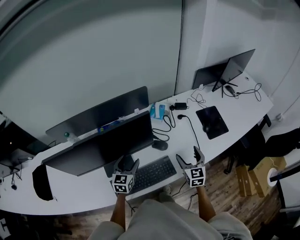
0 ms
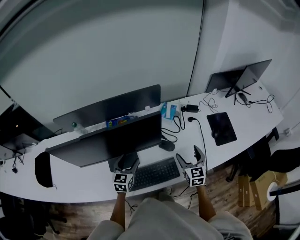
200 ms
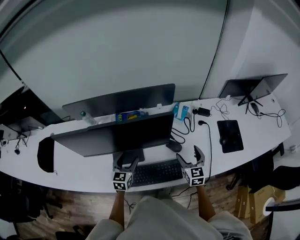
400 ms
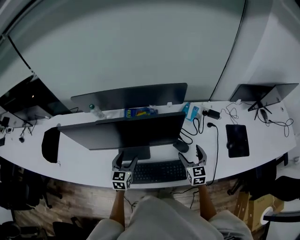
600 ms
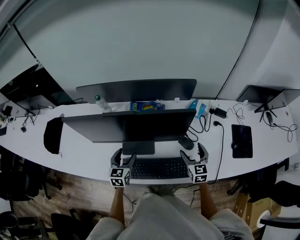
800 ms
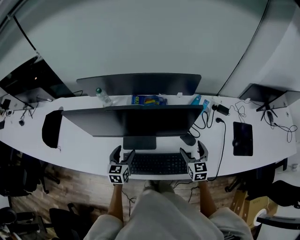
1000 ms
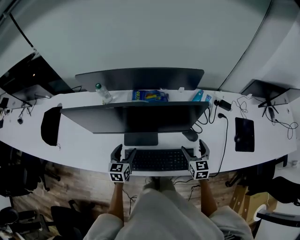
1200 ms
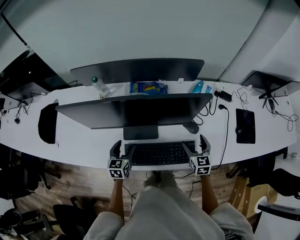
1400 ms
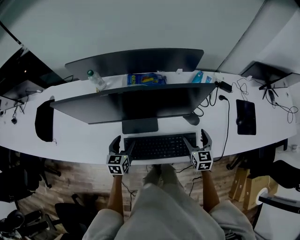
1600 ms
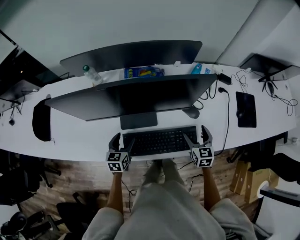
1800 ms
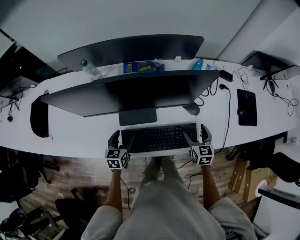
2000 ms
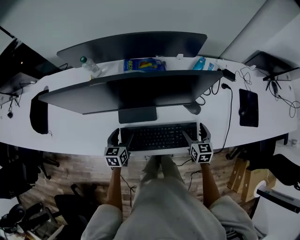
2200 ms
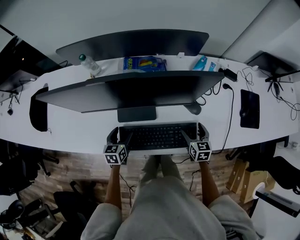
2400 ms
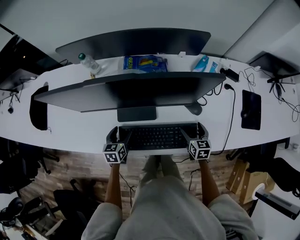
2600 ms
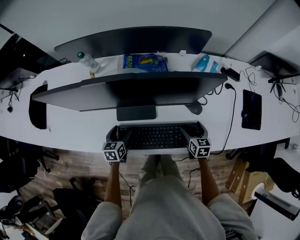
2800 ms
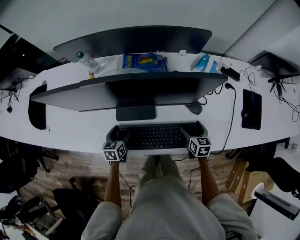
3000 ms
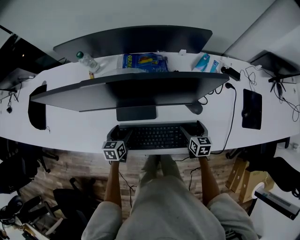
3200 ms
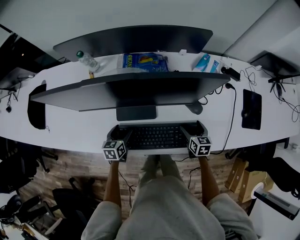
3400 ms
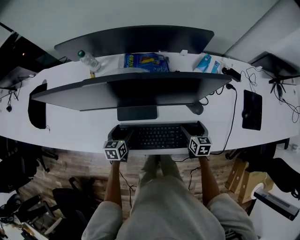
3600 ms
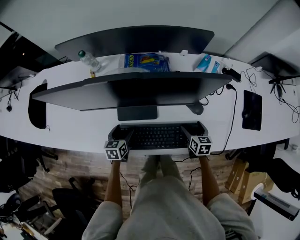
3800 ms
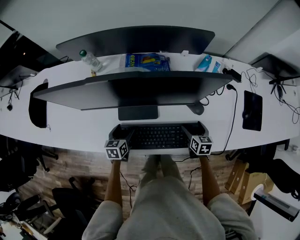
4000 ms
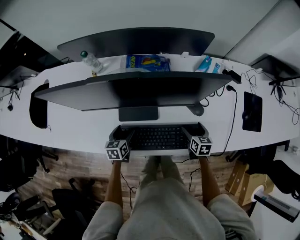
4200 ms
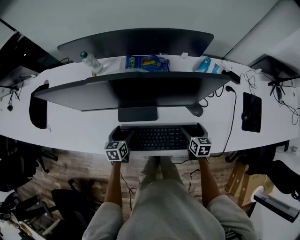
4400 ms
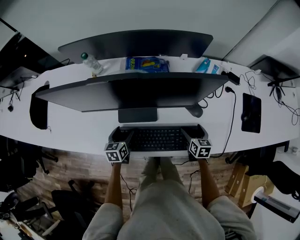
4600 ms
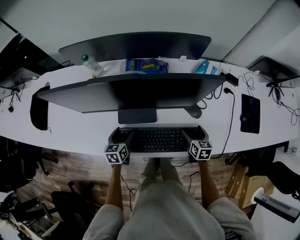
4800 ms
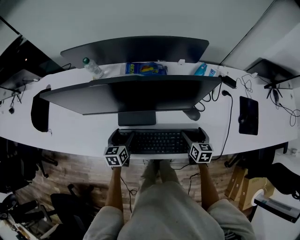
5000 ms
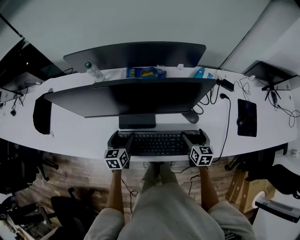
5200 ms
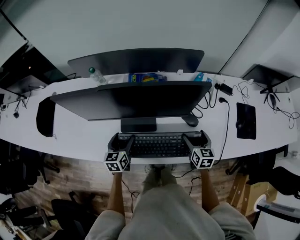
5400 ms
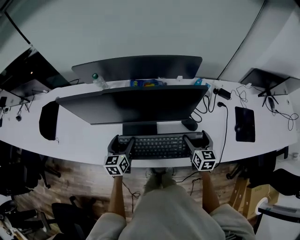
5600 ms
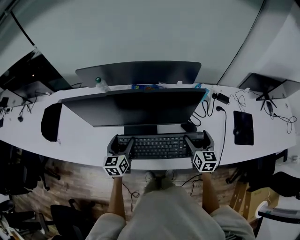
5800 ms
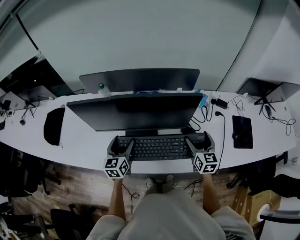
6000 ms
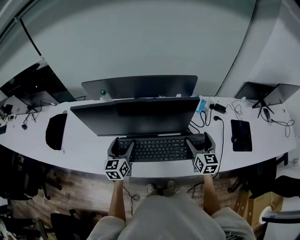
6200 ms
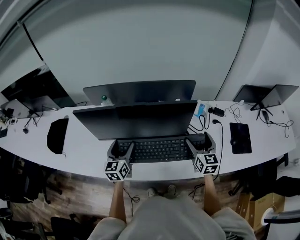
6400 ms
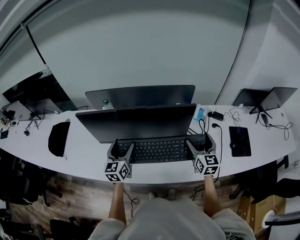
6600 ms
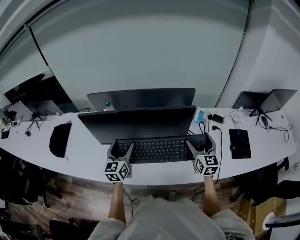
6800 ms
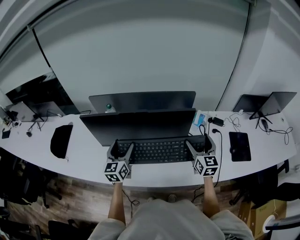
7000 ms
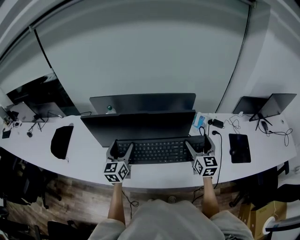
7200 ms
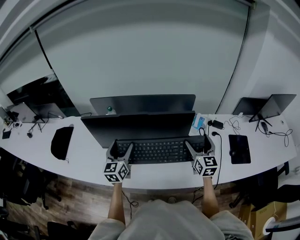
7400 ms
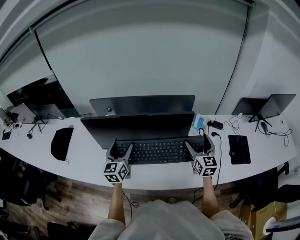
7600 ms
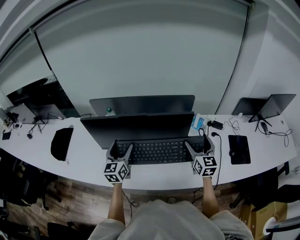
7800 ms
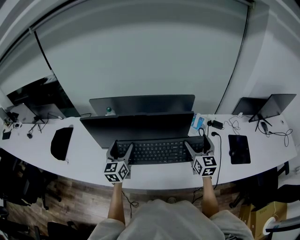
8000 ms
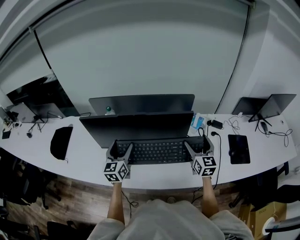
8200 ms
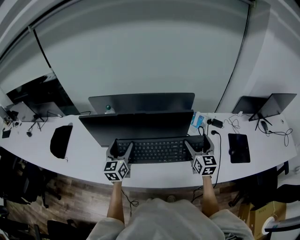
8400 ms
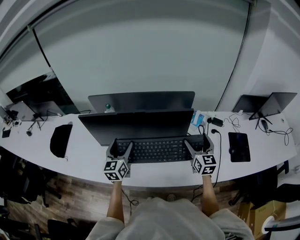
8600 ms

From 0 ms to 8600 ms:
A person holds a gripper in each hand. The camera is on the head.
From 0 ms to 1400 ms: The left gripper heads to the left and downward, covering roughly 20 cm, and changes its angle by about 30 degrees. Meanwhile the right gripper heads to the left, downward and forward, covering some 15 cm, and changes its angle by approximately 20 degrees.
From 1400 ms to 2800 ms: Both grippers travel together downward, some 10 cm.
From 2800 ms to 4400 ms: The grippers make only small movements.
From 4400 ms to 5800 ms: The grippers both shift upward by some 20 cm. The right gripper swivels approximately 20 degrees; the left gripper swivels about 20 degrees.
From 5800 ms to 7200 ms: Both grippers move upward, some 15 cm.
From 7200 ms to 8600 ms: The grippers stay close to where they were, moving slightly.

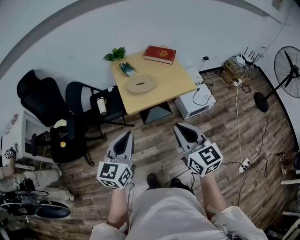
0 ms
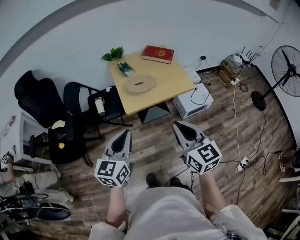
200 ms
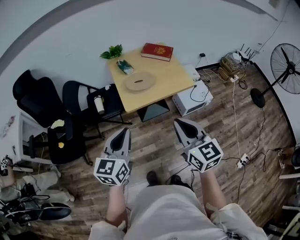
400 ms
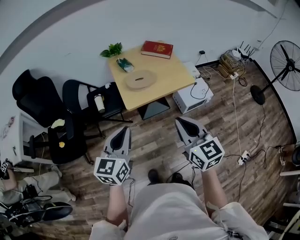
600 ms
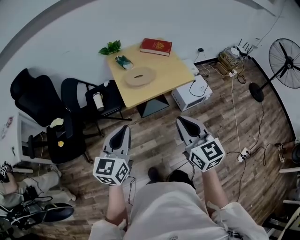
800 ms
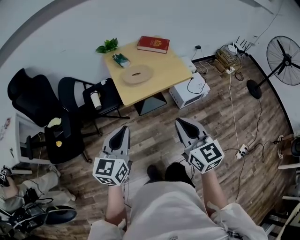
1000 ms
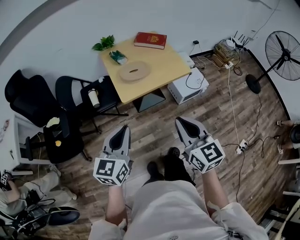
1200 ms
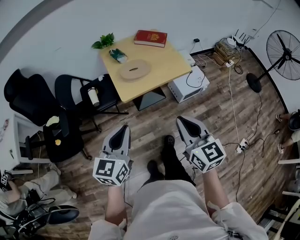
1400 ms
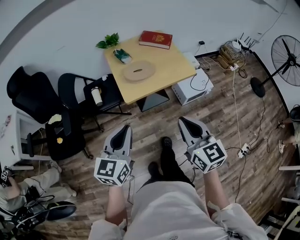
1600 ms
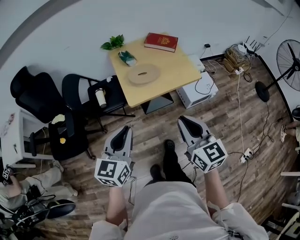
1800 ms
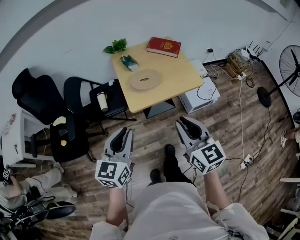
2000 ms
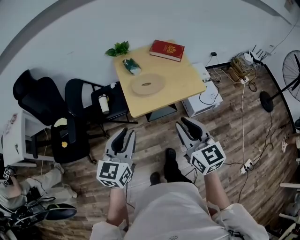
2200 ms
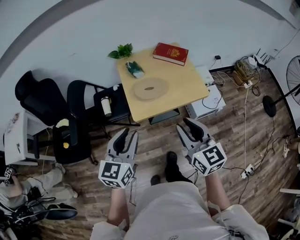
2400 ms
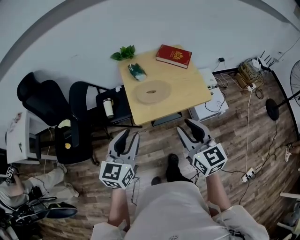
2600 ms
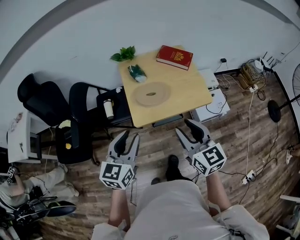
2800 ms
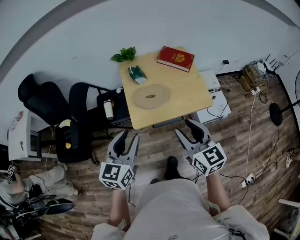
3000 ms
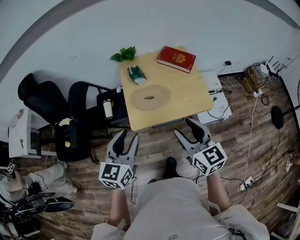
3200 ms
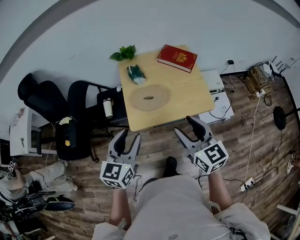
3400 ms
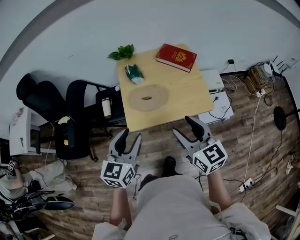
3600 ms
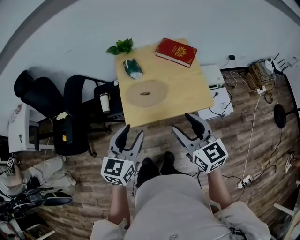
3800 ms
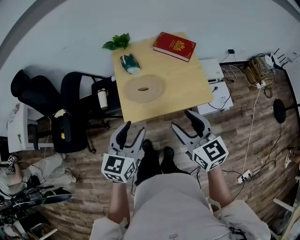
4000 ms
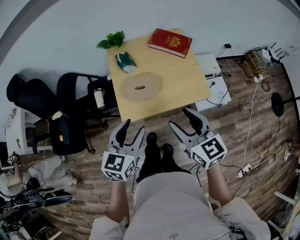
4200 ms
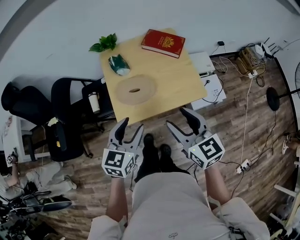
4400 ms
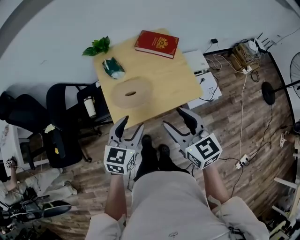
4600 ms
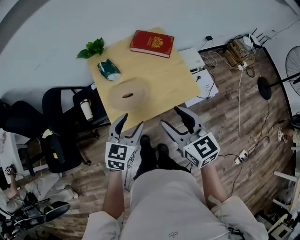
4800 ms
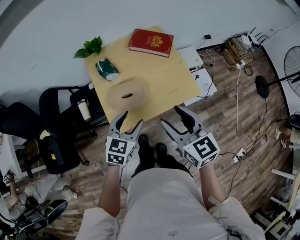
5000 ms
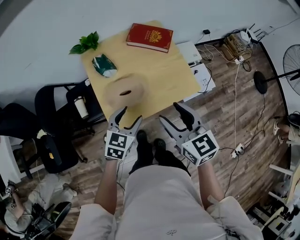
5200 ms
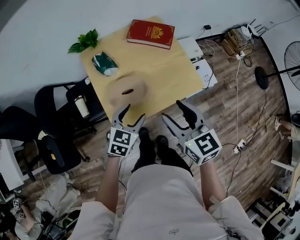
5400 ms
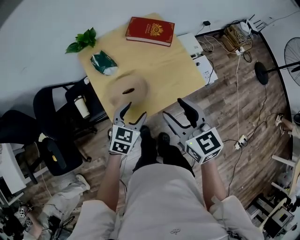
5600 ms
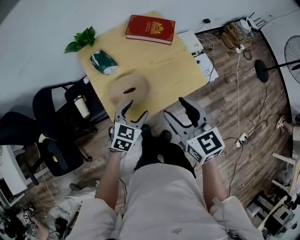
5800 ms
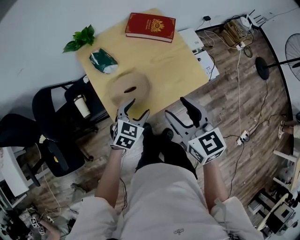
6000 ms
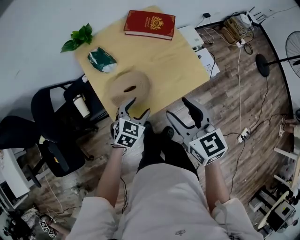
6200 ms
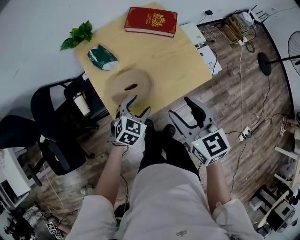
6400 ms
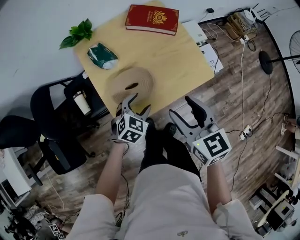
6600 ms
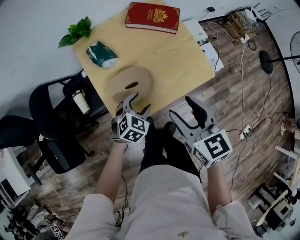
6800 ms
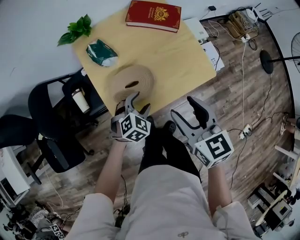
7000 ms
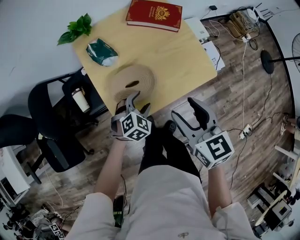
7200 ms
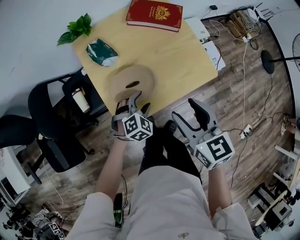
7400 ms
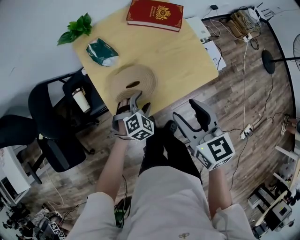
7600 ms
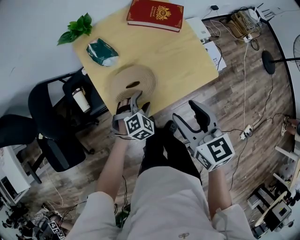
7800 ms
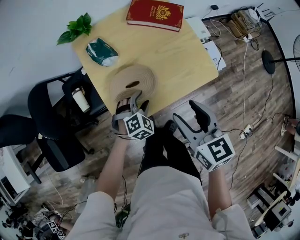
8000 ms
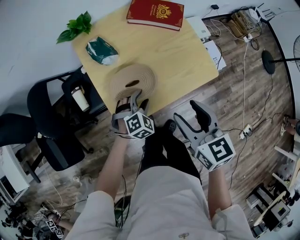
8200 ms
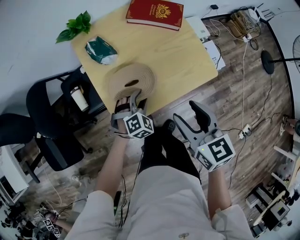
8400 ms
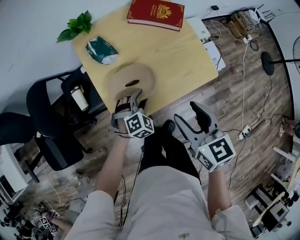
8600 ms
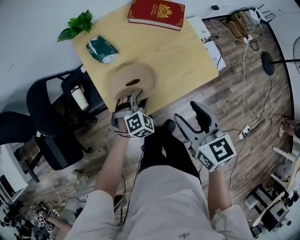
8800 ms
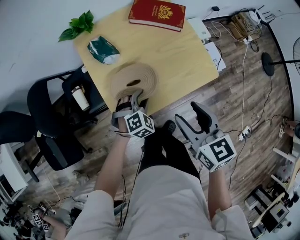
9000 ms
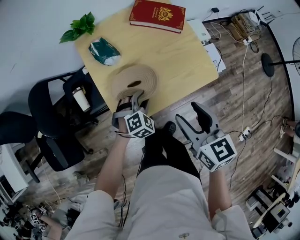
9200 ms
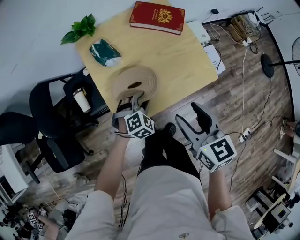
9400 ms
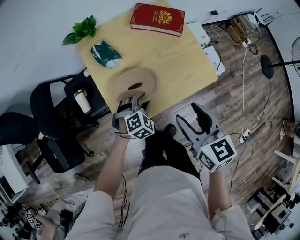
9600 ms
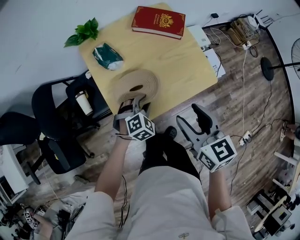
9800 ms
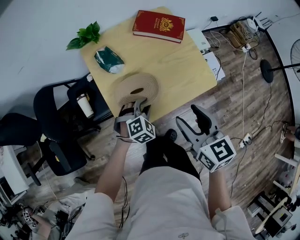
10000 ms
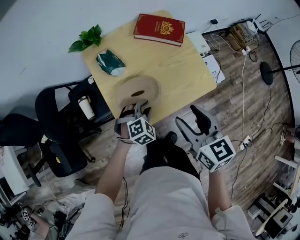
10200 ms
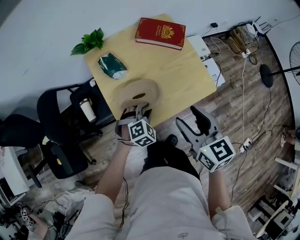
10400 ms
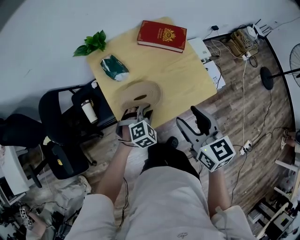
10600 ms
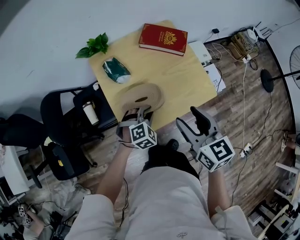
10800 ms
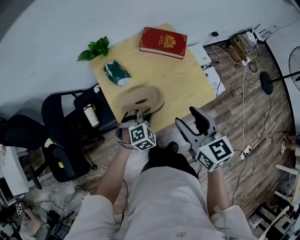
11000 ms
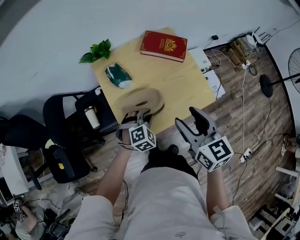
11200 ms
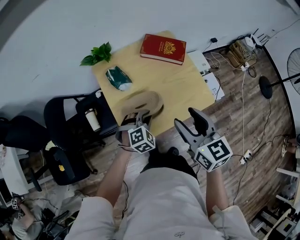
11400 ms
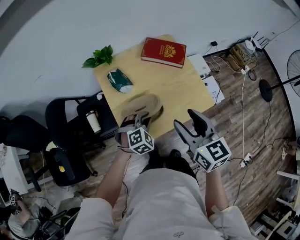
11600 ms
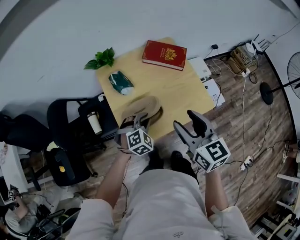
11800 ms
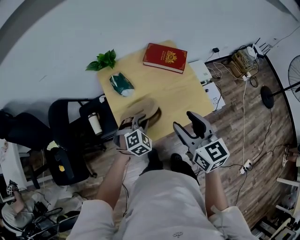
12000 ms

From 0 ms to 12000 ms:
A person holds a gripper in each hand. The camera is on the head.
From 0 ms to 1600 ms: There are only small adjustments of the grippers.
From 1600 ms to 3000 ms: The two grippers go some 20 cm forward. The left gripper opens its fingers, while the right gripper opens its fingers.
From 3000 ms to 4400 ms: The left gripper goes about 15 cm to the right, forward and downward; the right gripper moves forward and to the right, roughly 10 cm.
From 4400 ms to 6000 ms: The right gripper travels forward and downward by approximately 10 cm. The left gripper heads downward and forward, covering about 20 cm, and swivels some 30 degrees.
From 6000 ms to 7600 ms: The left gripper travels downward by about 10 cm, and turns by some 30 degrees.
From 7600 ms to 9000 ms: The left gripper closes up.
From 9000 ms to 10400 ms: The grippers move only a little.
From 10400 ms to 12000 ms: The two grippers go roughly 5 cm upward.

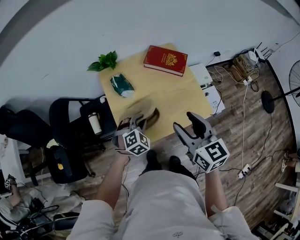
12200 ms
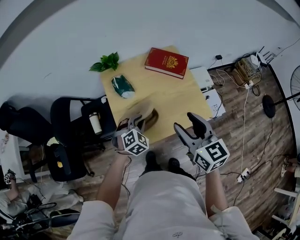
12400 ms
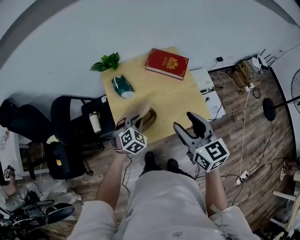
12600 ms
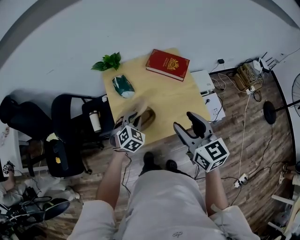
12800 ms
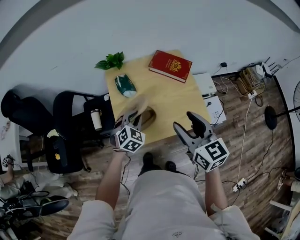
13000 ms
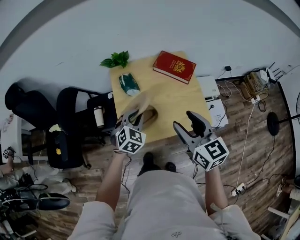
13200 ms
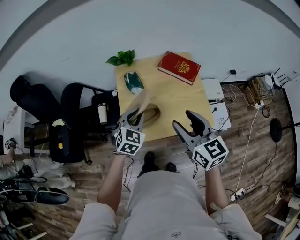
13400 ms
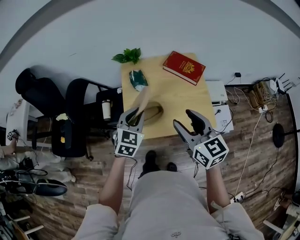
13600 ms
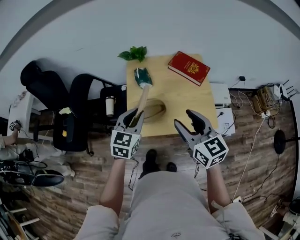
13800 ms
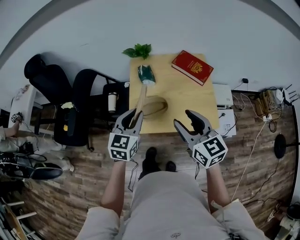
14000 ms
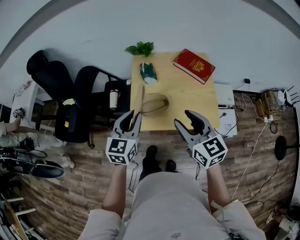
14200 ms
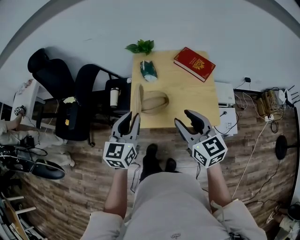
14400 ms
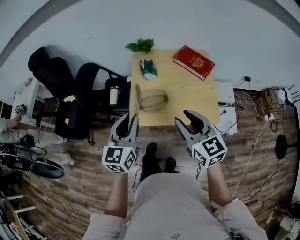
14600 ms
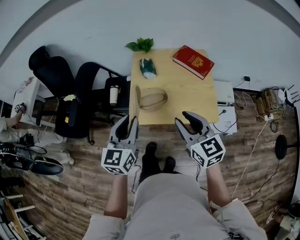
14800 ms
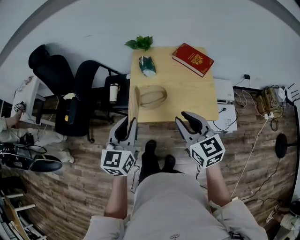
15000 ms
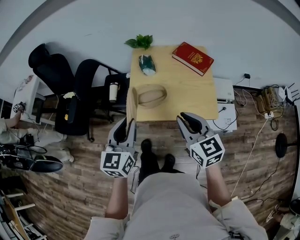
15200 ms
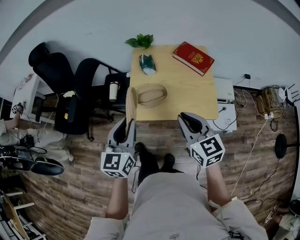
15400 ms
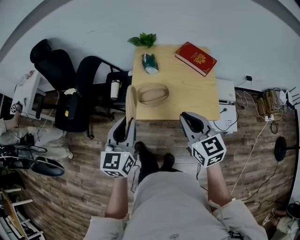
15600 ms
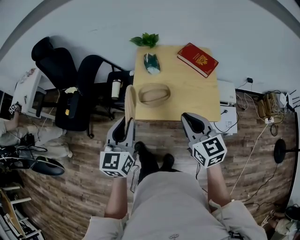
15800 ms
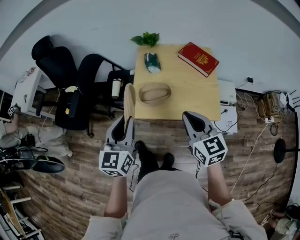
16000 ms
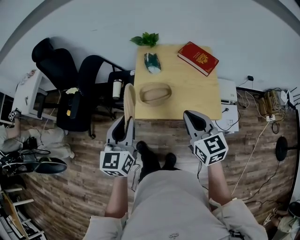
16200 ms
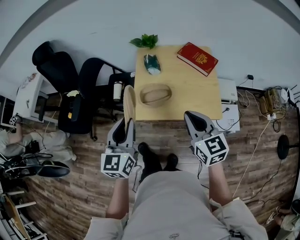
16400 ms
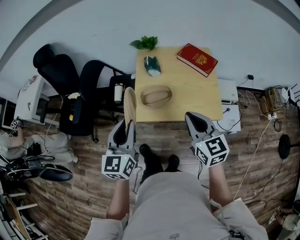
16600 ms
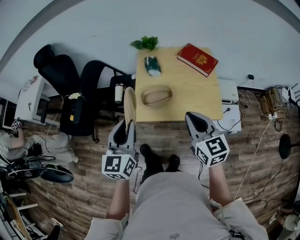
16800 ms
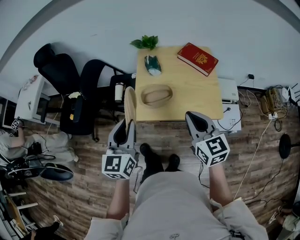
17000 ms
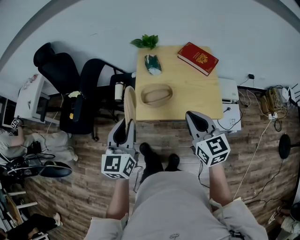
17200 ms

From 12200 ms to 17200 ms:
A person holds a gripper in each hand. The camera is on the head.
From 12200 ms to 13800 ms: The right gripper swivels some 20 degrees. Meanwhile the left gripper moves upward, about 15 cm, and rolls counterclockwise, seen from behind, by roughly 50 degrees.
From 13800 ms to 15600 ms: The right gripper travels backward by about 5 cm, and closes; the left gripper goes about 15 cm backward and to the left, and swivels approximately 20 degrees.
From 15600 ms to 17200 ms: There are only small adjustments of the grippers.
